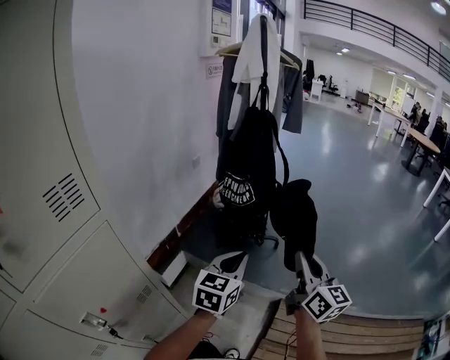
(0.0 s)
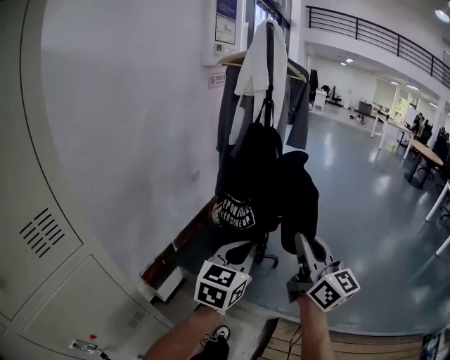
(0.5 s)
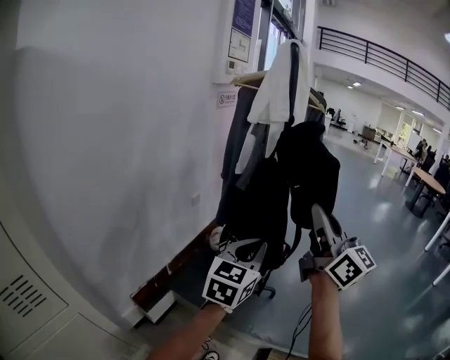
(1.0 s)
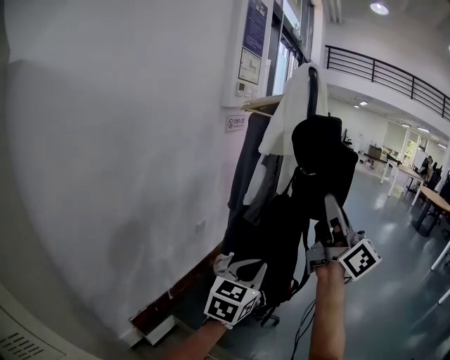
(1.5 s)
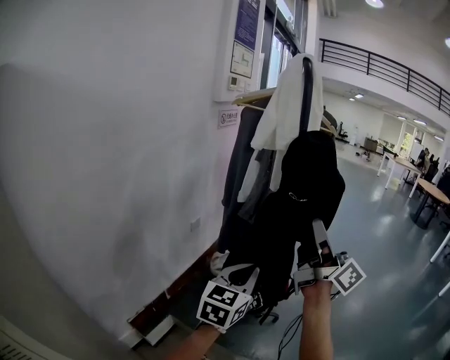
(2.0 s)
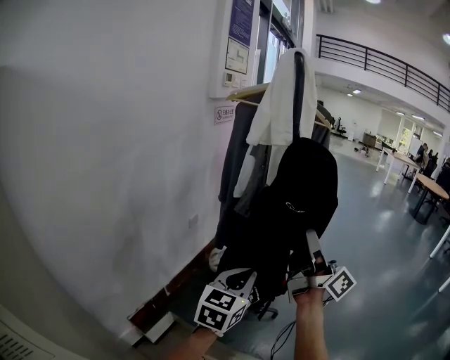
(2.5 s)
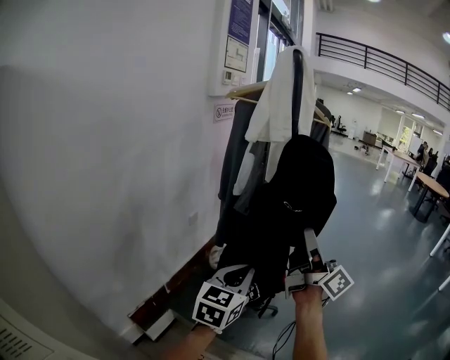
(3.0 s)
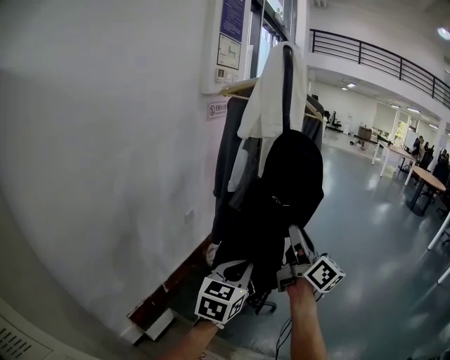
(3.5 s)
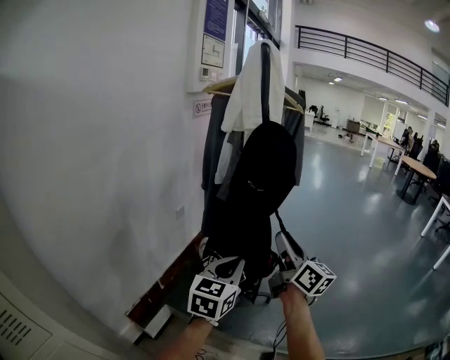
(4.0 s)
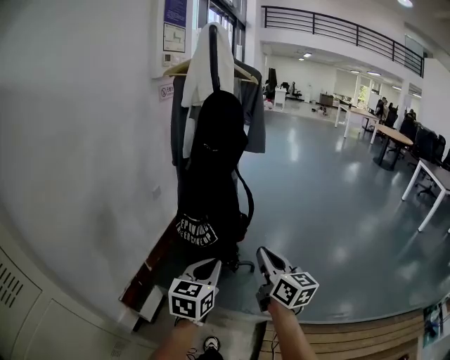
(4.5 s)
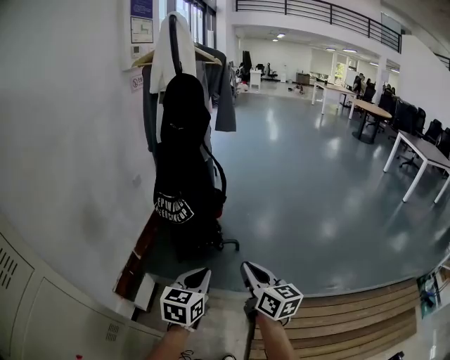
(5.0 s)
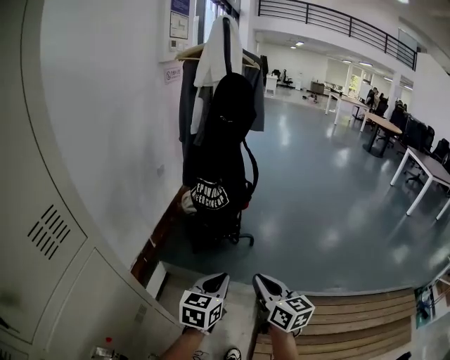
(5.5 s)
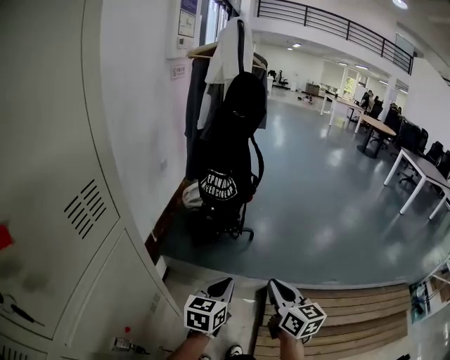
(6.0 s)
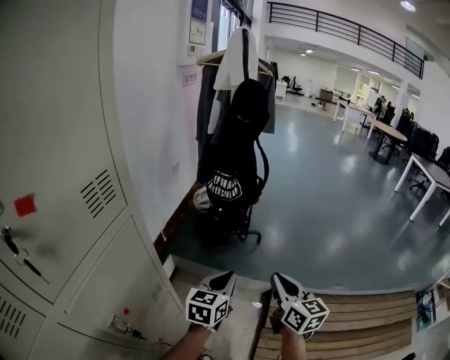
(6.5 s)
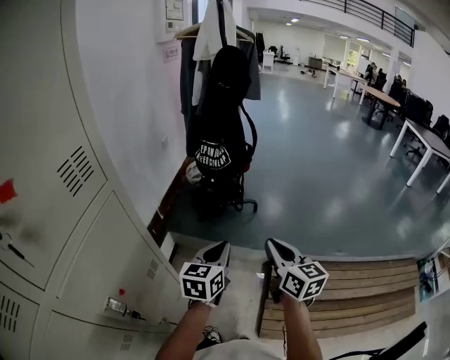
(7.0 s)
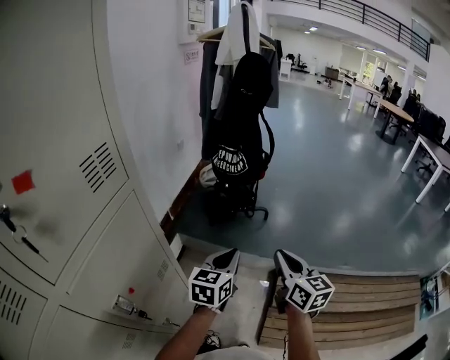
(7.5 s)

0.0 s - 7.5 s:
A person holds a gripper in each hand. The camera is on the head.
0.0 s - 2.0 s: The right gripper moves forward and upward, about 40 cm, and angles its fingers upward, by approximately 30 degrees. The left gripper shifts approximately 35 cm forward.
2.0 s - 4.0 s: The right gripper heads downward, covering roughly 15 cm, changes its angle by some 30 degrees, and opens; the left gripper moves backward, roughly 5 cm.
4.0 s - 5.5 s: The grippers both shift backward and downward by some 40 cm. The right gripper rotates roughly 30 degrees, and closes its fingers.
5.5 s - 7.5 s: Both grippers move backward, about 10 cm.

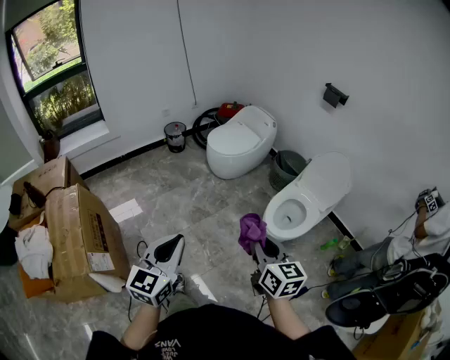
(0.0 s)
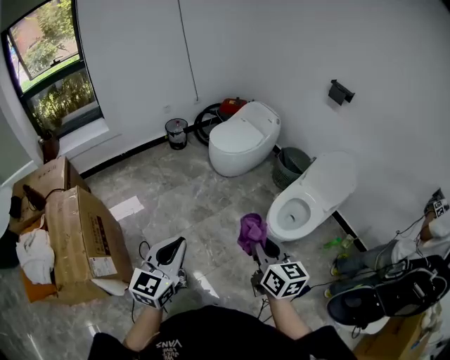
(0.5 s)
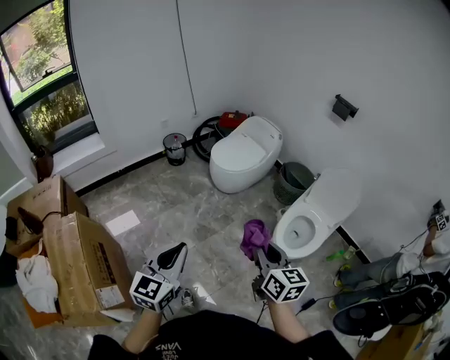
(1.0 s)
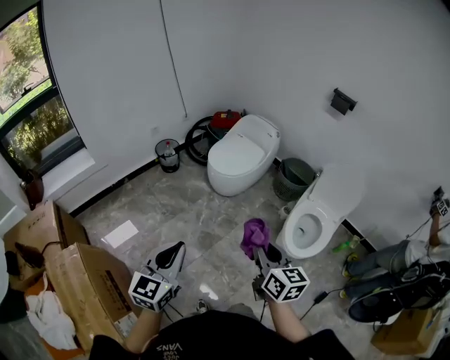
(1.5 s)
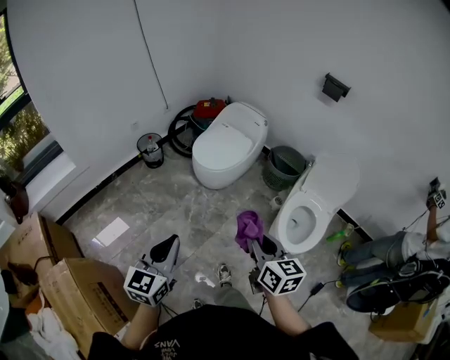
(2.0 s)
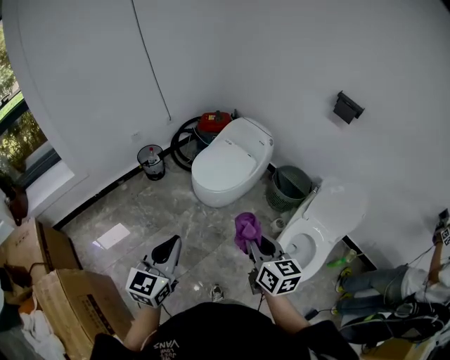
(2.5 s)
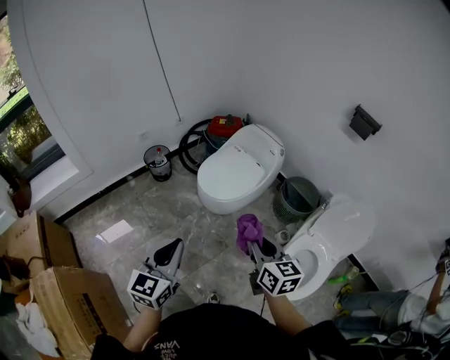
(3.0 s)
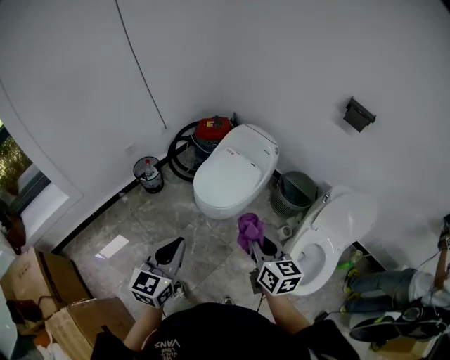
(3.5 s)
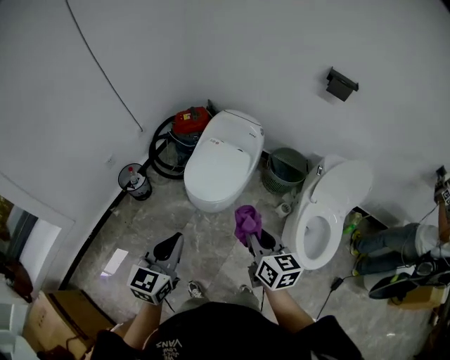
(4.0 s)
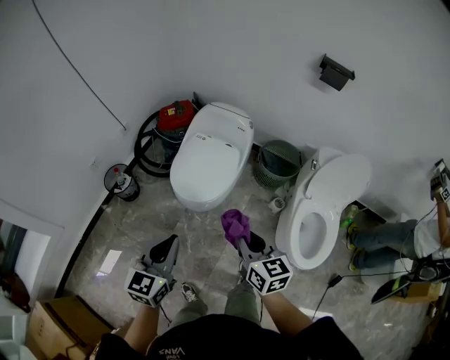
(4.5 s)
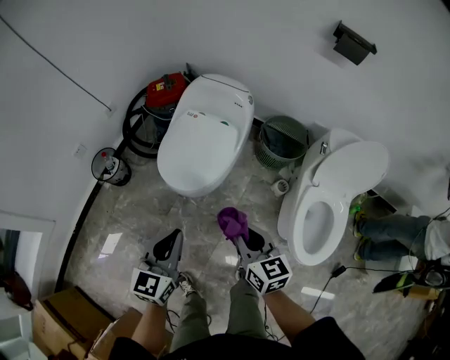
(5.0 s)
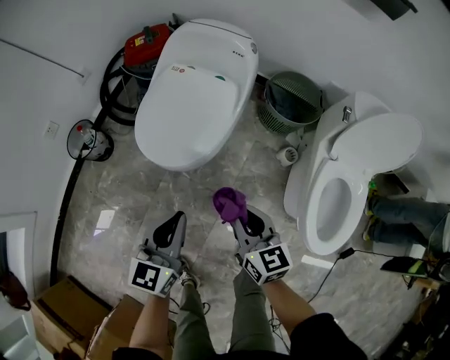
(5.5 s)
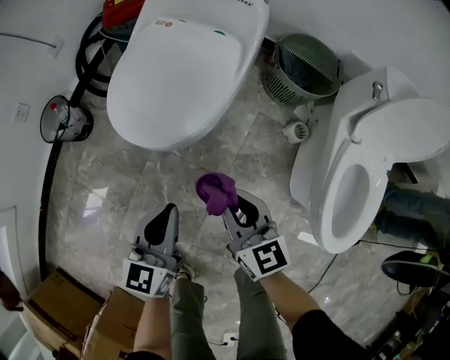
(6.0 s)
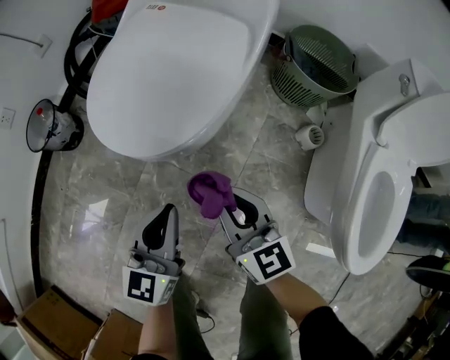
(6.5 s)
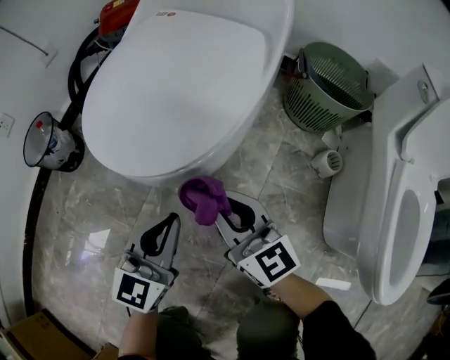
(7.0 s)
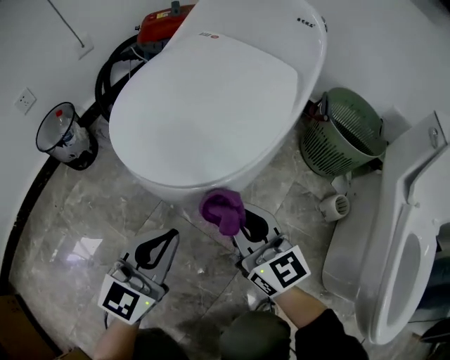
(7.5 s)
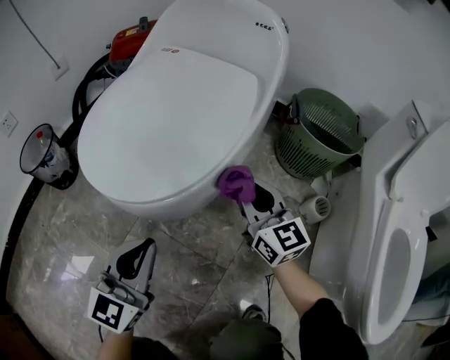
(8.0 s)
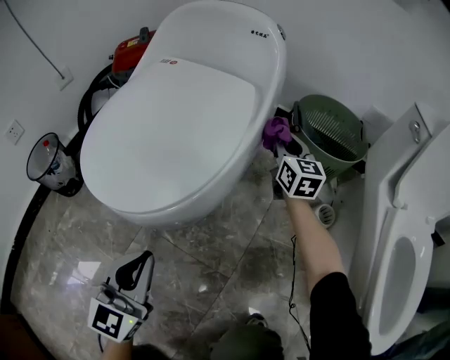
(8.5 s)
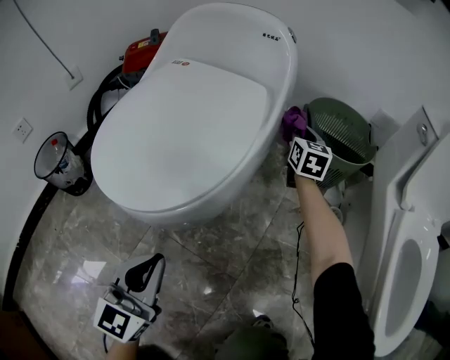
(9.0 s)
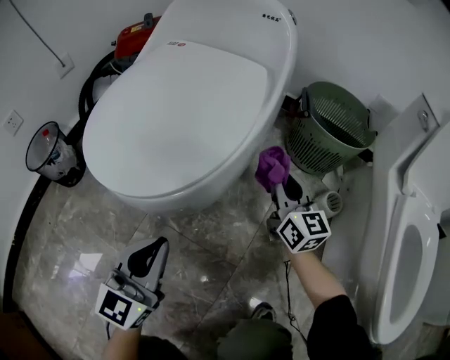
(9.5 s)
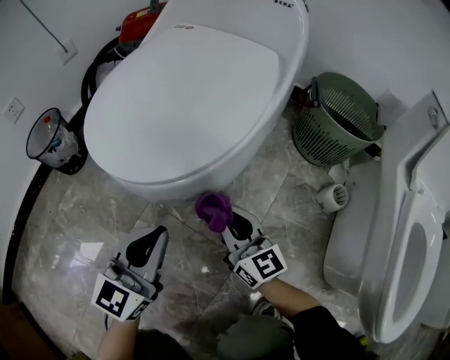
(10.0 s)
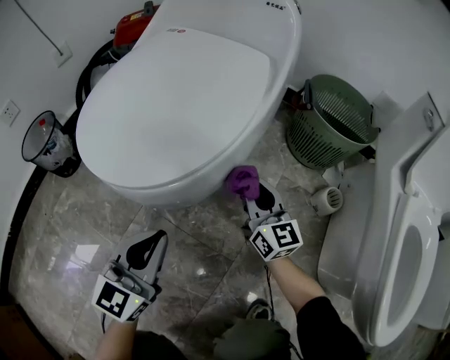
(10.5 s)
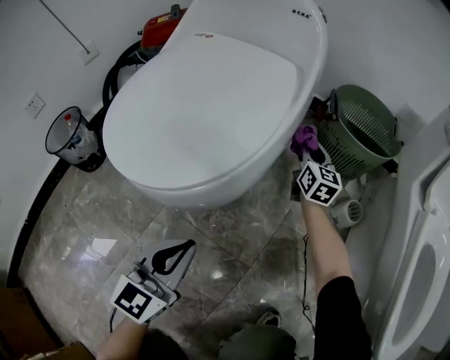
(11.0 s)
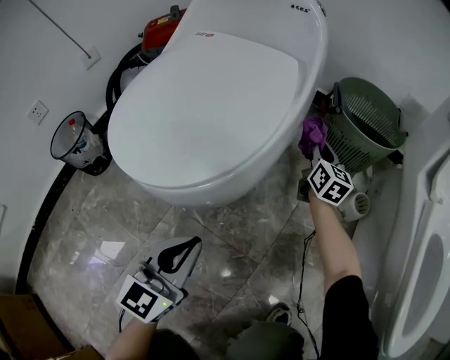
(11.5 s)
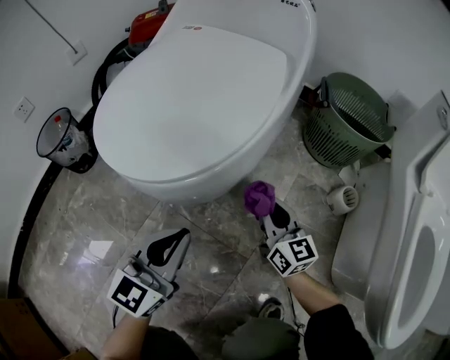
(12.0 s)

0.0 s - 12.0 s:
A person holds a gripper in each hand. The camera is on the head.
0.0 s - 2.0 s: The two grippers go roughly 30 cm forward and to the left.
2.0 s - 4.0 s: Both grippers travel together forward, some 30 cm.
4.0 s - 6.0 s: The right gripper is displaced downward by approximately 40 cm. Meanwhile the left gripper is displaced downward and forward by roughly 40 cm.
6.0 s - 8.0 s: The left gripper moves downward, roughly 20 cm, and turns by roughly 20 degrees. The right gripper shifts approximately 25 cm downward and forward.
8.0 s - 10.0 s: The right gripper shifts approximately 10 cm downward and to the left, and moves roughly 25 cm forward and comes back.
10.0 s - 12.0 s: The right gripper travels to the right by roughly 10 cm, and travels forward and back again, some 25 cm each way.

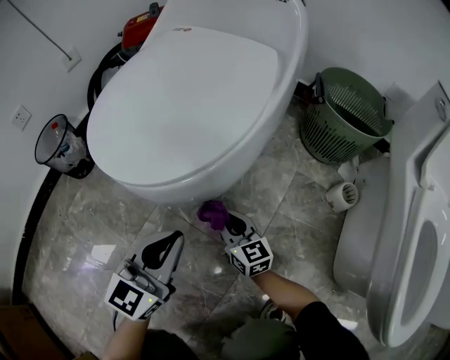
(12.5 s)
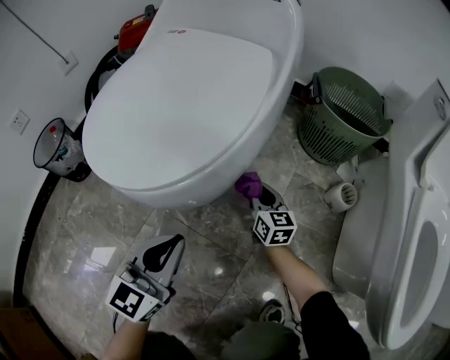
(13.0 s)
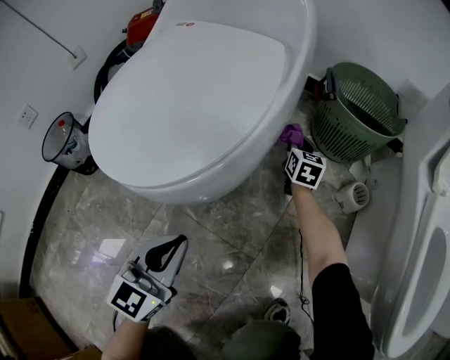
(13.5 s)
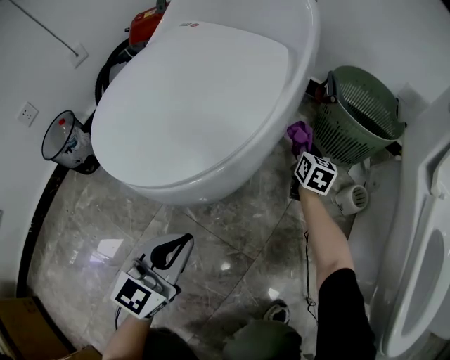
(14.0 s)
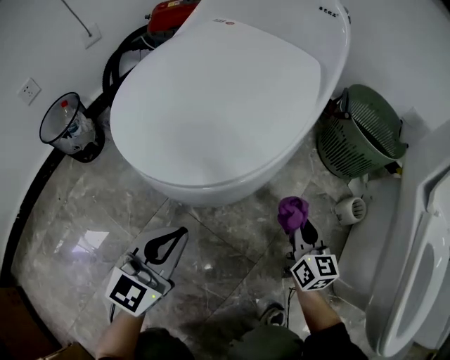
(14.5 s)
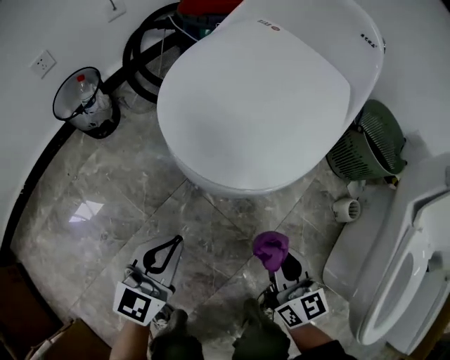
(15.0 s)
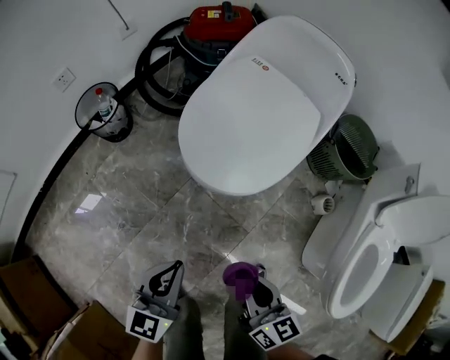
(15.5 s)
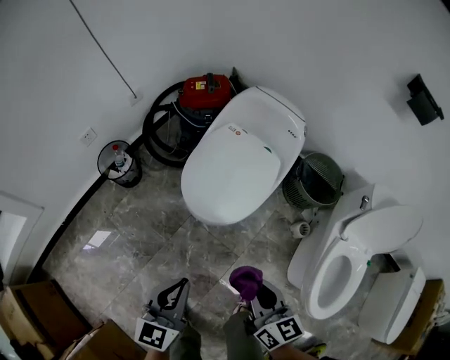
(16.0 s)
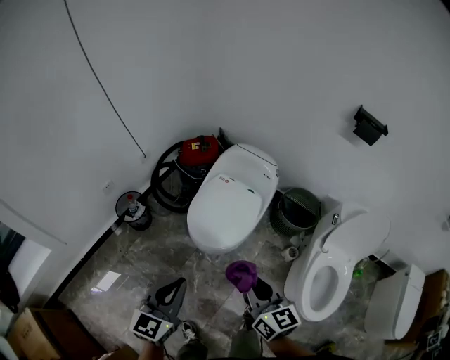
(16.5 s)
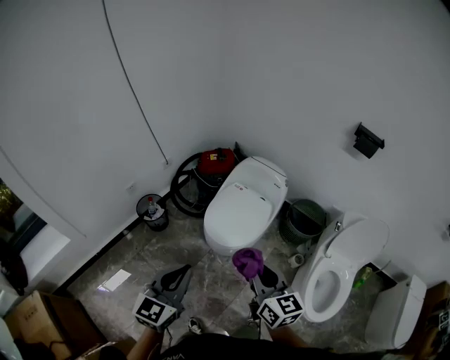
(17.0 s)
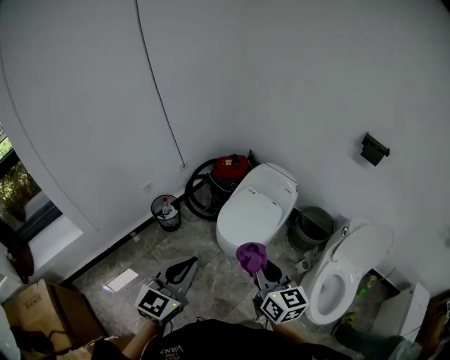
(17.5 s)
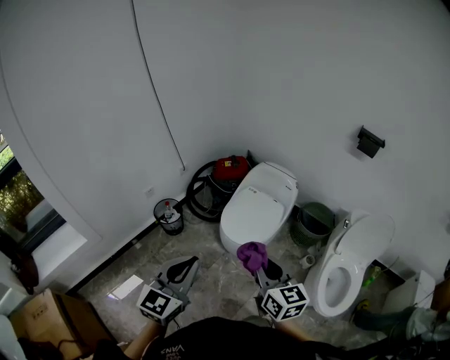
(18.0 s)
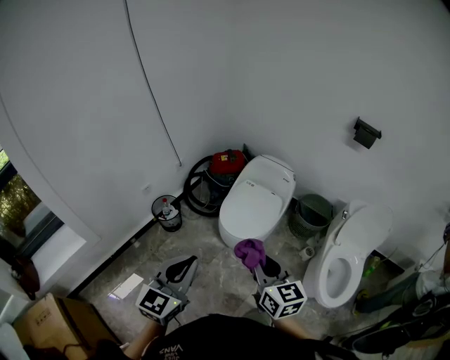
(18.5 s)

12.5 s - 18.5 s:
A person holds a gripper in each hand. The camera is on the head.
12.5 s - 14.5 s: The left gripper changes place by about 5 cm, while the right gripper is displaced to the right and upward by roughly 15 cm, and reaches some 30 cm forward, then returns.
14.5 s - 16.5 s: The grippers both shift upward by about 60 cm.
16.5 s - 18.5 s: The right gripper travels backward, to the left and upward by some 15 cm; the left gripper goes roughly 20 cm backward, upward and to the left.

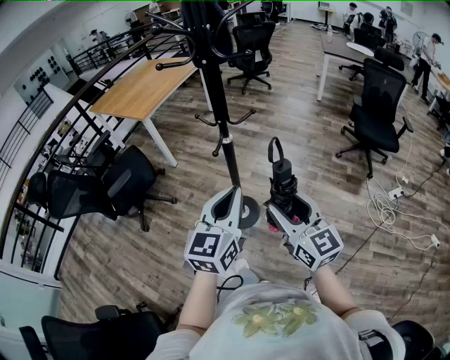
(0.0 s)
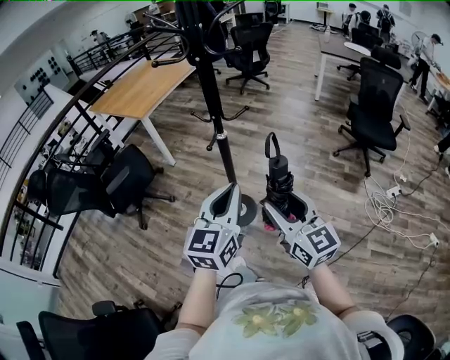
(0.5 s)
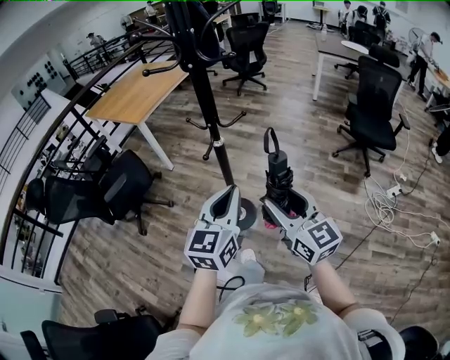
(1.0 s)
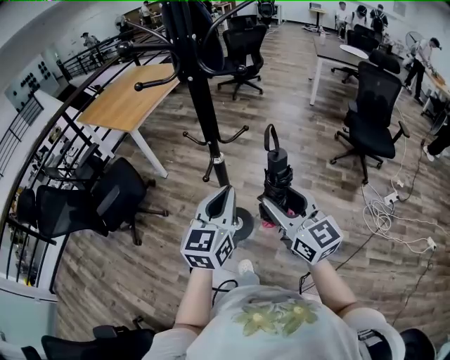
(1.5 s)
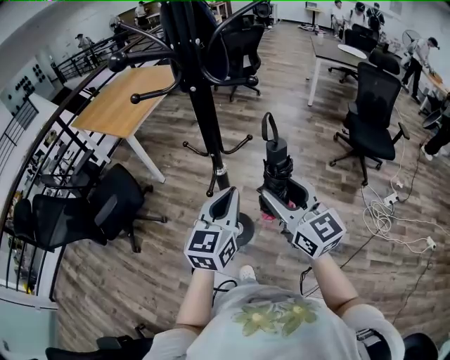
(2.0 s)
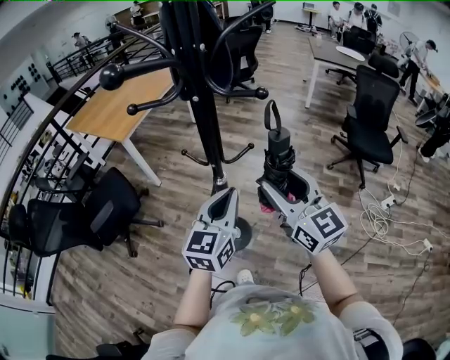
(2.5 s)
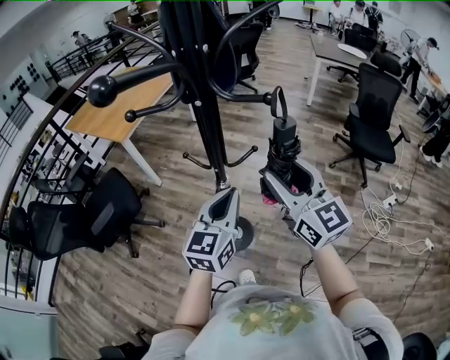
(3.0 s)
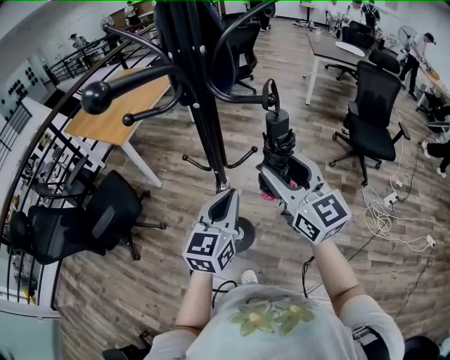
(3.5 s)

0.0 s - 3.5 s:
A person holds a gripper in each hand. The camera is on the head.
0.0 s - 2.0 s: The grippers both shift forward by roughly 15 cm.
2.0 s - 3.5 s: The left gripper is displaced forward by approximately 5 cm. Meanwhile the right gripper heads forward, covering about 10 cm.
